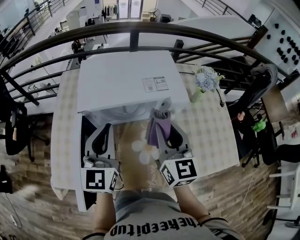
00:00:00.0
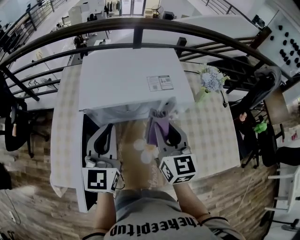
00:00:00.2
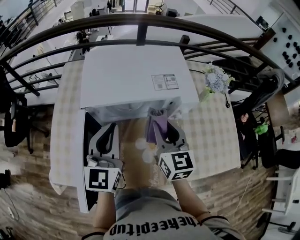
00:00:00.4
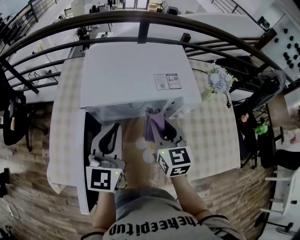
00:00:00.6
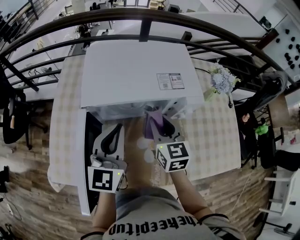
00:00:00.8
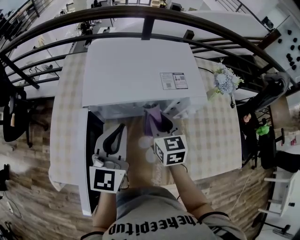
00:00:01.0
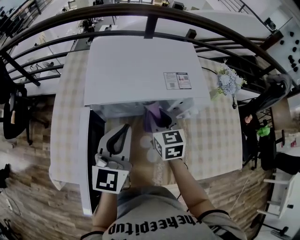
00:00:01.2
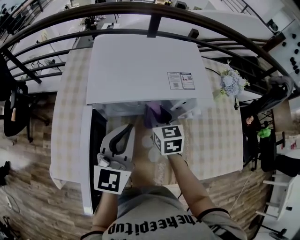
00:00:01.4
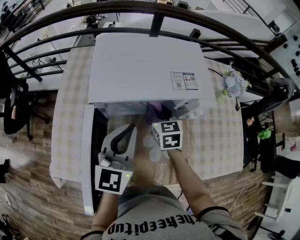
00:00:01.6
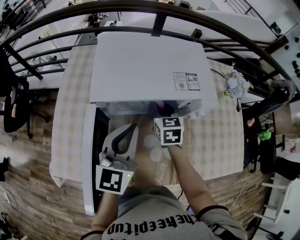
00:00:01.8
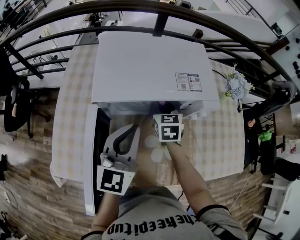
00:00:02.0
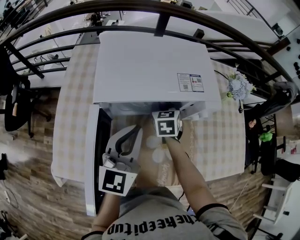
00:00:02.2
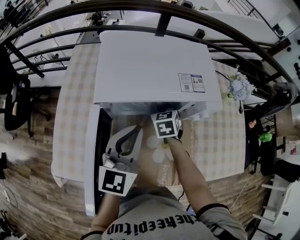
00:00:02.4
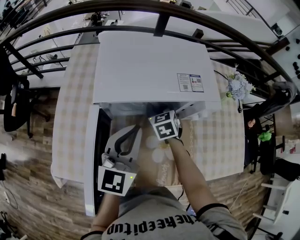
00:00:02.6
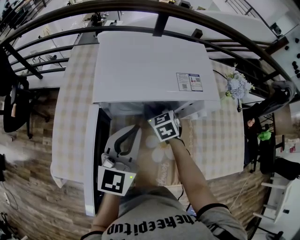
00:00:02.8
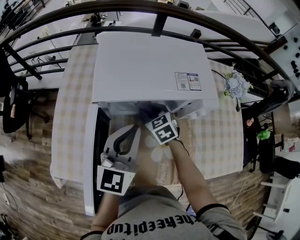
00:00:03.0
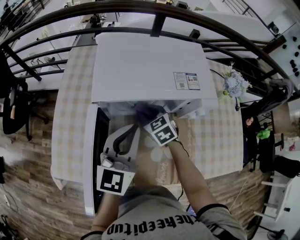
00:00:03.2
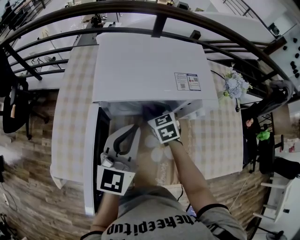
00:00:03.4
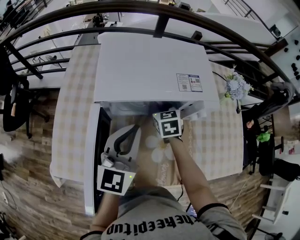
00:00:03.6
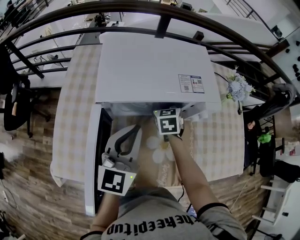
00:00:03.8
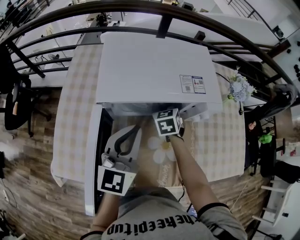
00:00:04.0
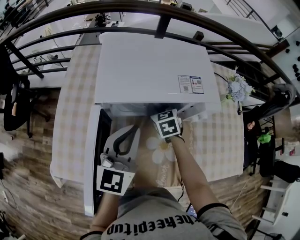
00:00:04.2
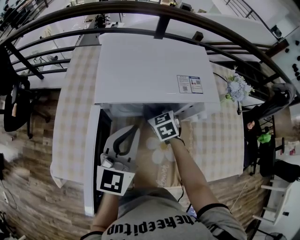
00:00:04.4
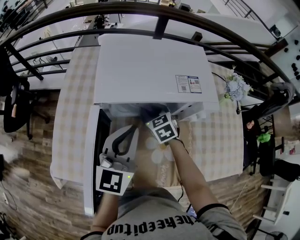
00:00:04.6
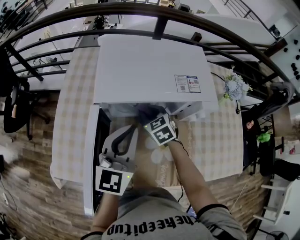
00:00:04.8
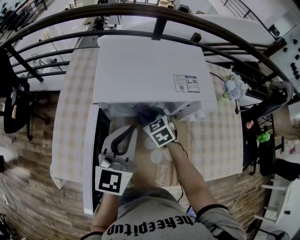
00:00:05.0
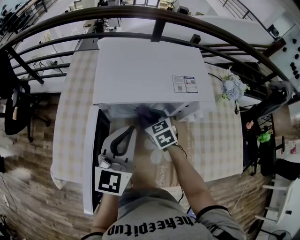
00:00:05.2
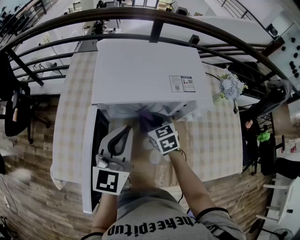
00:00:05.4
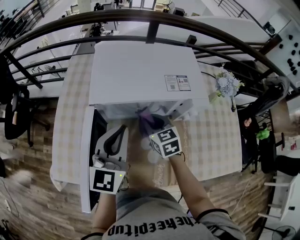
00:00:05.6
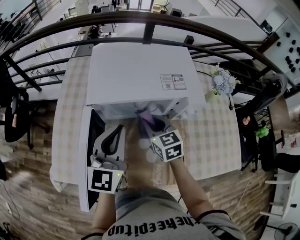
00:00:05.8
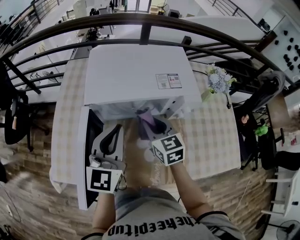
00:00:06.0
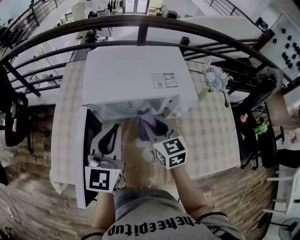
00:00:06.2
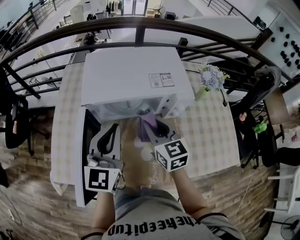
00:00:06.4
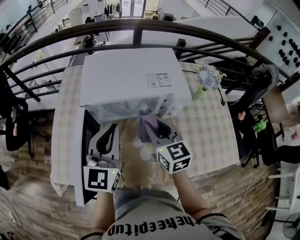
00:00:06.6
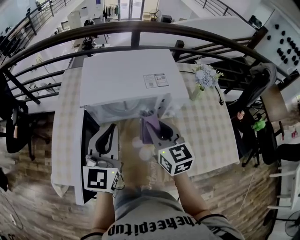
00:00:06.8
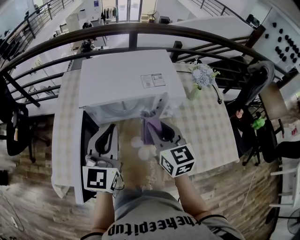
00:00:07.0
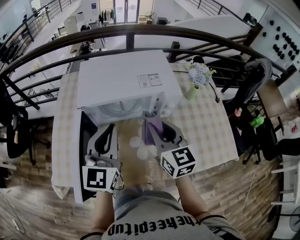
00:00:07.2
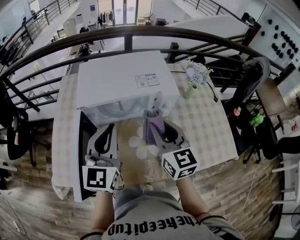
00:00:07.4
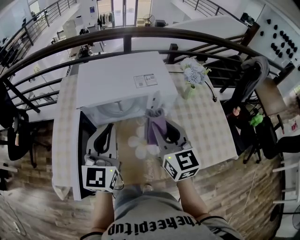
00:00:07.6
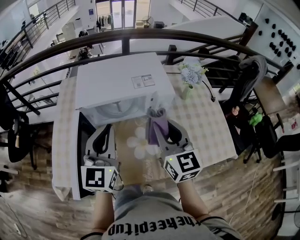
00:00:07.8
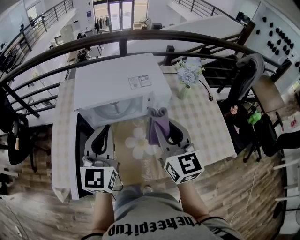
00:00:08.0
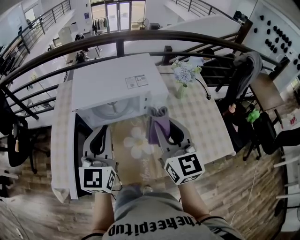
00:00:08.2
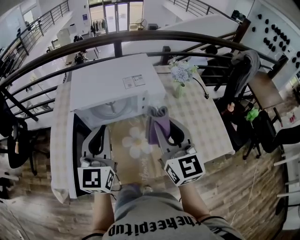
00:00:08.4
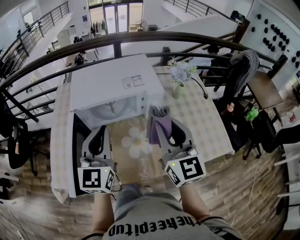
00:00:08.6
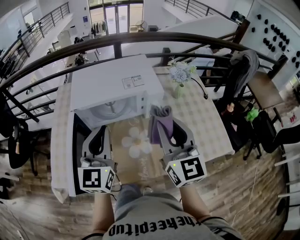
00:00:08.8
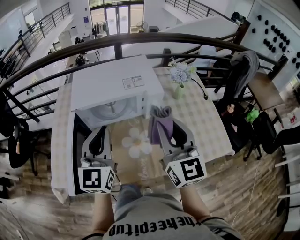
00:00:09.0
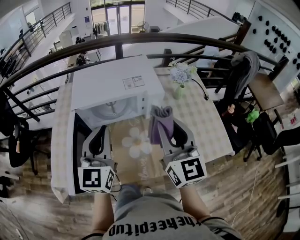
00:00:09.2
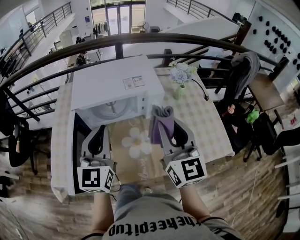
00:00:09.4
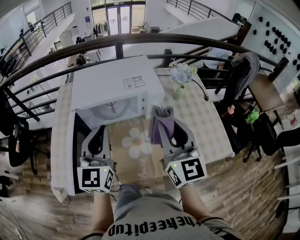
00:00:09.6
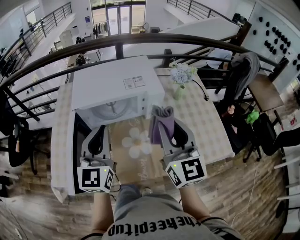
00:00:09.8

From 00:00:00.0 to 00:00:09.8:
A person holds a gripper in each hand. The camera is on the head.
From 00:00:00.0 to 00:00:01.4: The left gripper moves downward, about 5 cm. The right gripper travels downward, forward and to the left by roughly 20 cm, and turns by some 30 degrees.
From 00:00:01.4 to 00:00:02.8: The right gripper is displaced downward by about 5 cm, and changes its angle by about 20 degrees.
From 00:00:02.8 to 00:00:04.2: The grippers move only a little.
From 00:00:04.2 to 00:00:05.6: The right gripper goes about 5 cm backward.
From 00:00:05.6 to 00:00:07.0: The left gripper moves upward, roughly 5 cm, while the right gripper shifts approximately 20 cm upward, backward and to the right, and swivels some 20 degrees.
From 00:00:07.0 to 00:00:08.4: The right gripper moves upward, backward and to the right, about 15 cm. The left gripper ends up about 5 cm from where it was.
From 00:00:08.4 to 00:00:09.8: The grippers make only small movements.

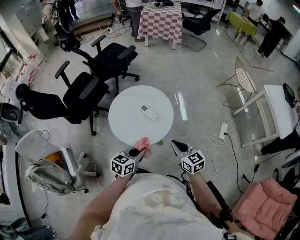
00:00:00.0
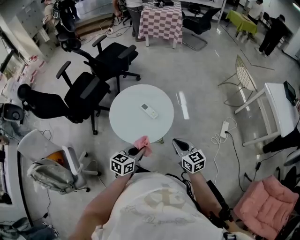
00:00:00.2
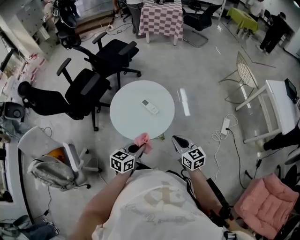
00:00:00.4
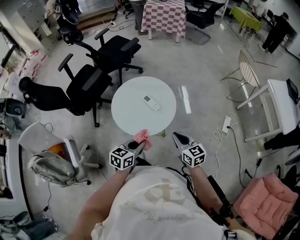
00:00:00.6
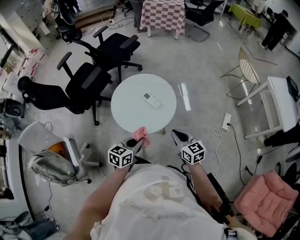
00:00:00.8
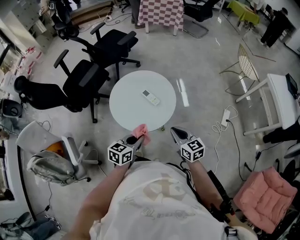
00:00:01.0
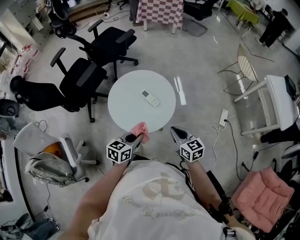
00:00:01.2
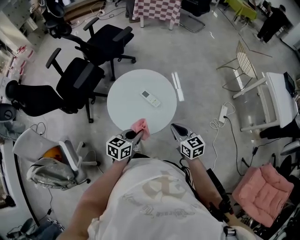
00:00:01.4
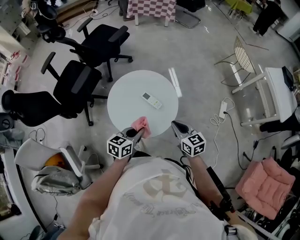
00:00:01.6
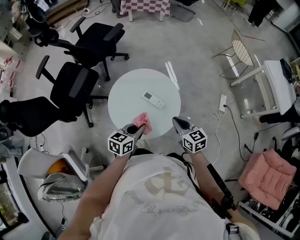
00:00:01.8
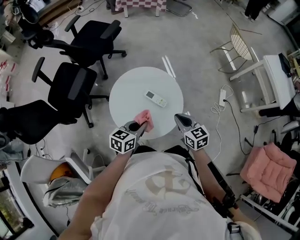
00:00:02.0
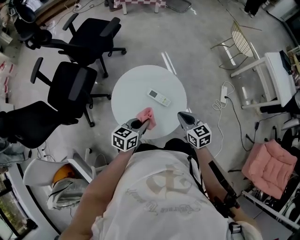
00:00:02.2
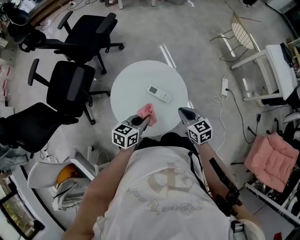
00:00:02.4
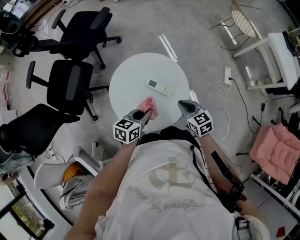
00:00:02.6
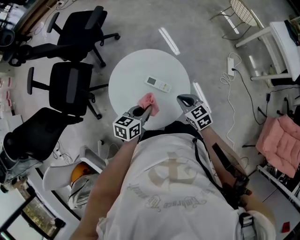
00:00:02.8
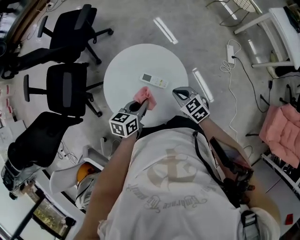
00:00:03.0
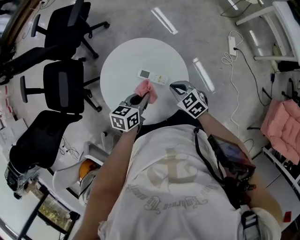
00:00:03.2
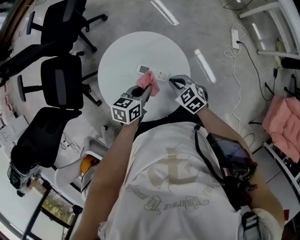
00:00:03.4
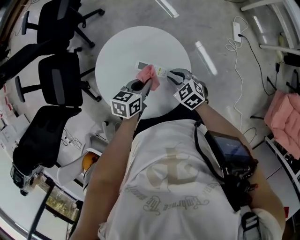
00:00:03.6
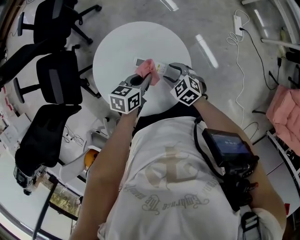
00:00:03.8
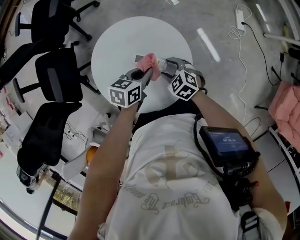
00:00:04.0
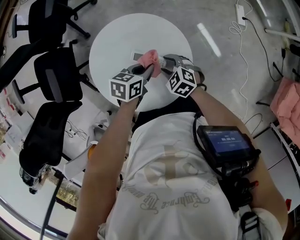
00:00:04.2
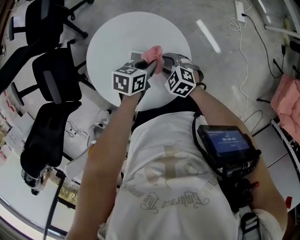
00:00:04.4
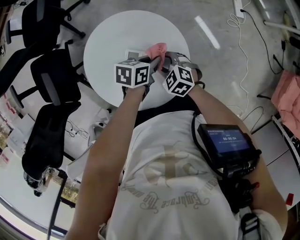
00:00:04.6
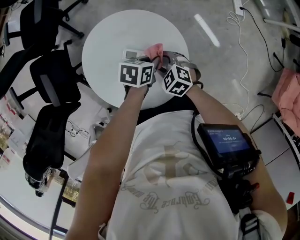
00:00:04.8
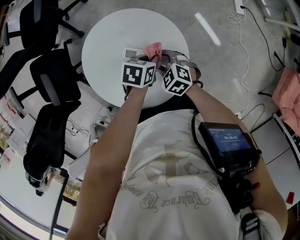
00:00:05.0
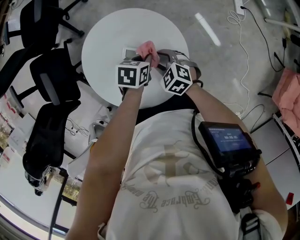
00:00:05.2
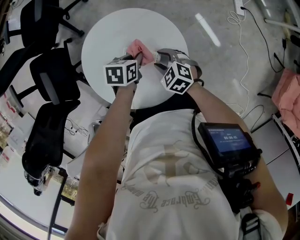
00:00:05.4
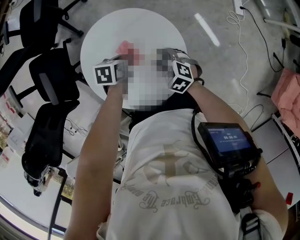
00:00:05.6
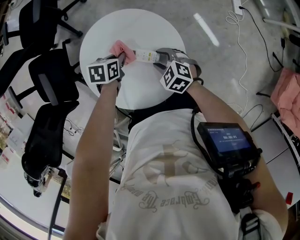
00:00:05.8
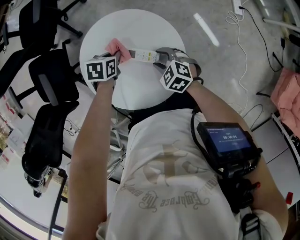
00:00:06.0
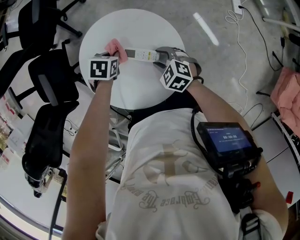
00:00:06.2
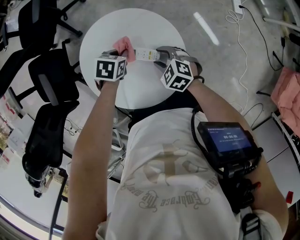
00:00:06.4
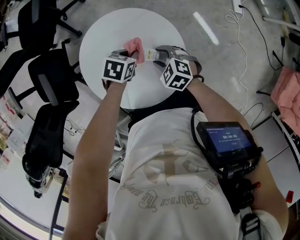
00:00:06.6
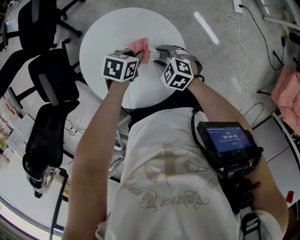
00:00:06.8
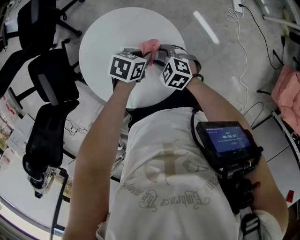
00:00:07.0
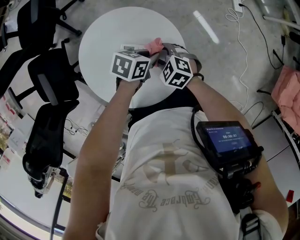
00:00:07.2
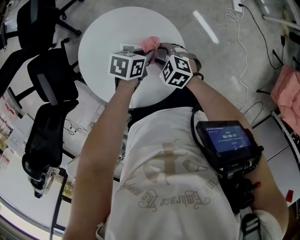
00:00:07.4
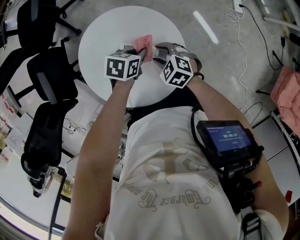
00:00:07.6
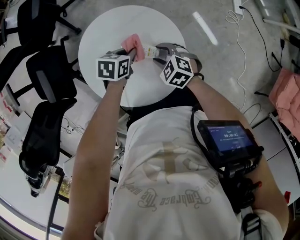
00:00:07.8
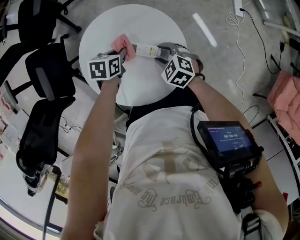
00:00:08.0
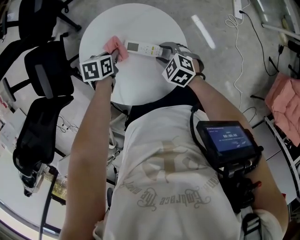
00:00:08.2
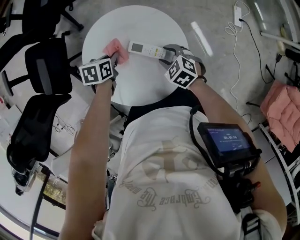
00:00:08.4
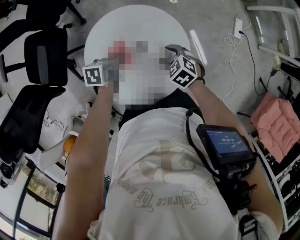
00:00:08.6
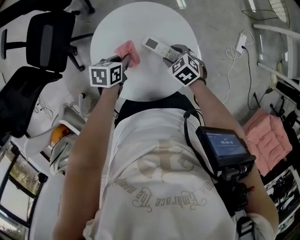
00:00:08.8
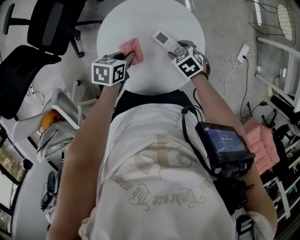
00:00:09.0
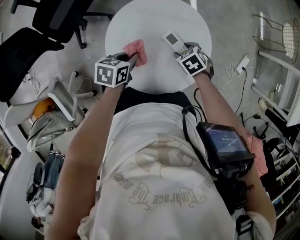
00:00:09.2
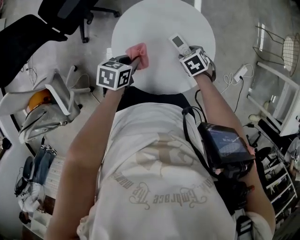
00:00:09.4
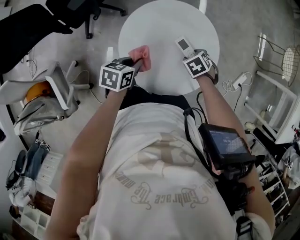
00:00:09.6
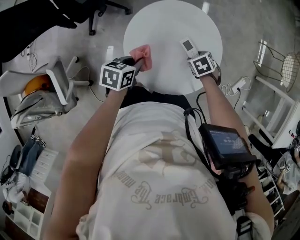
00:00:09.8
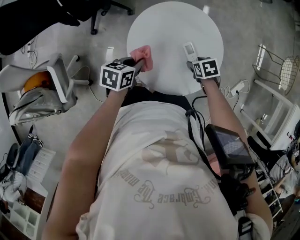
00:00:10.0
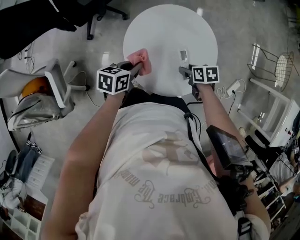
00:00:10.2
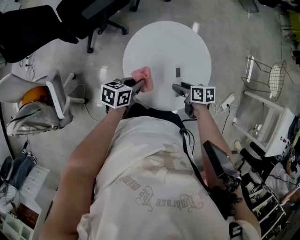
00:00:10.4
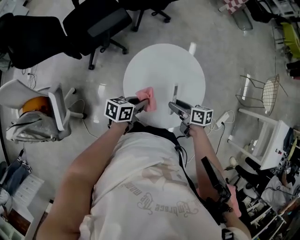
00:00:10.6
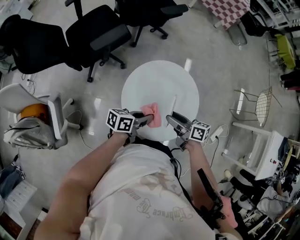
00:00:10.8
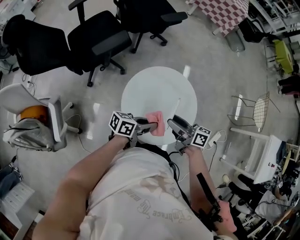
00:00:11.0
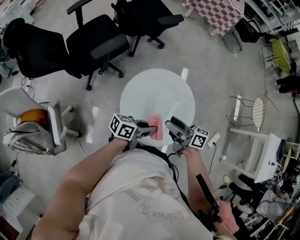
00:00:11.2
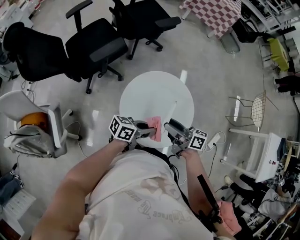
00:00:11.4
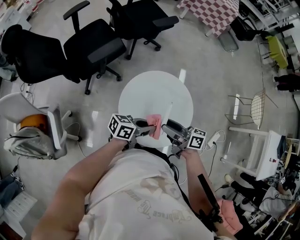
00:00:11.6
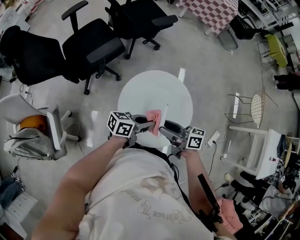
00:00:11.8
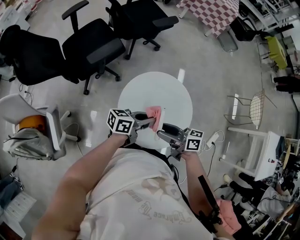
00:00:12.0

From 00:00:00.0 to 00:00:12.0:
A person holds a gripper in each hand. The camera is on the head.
From 00:00:00.0 to 00:00:01.6: Both grippers move forward and to the left, some 10 cm.
From 00:00:01.6 to 00:00:03.0: The right gripper heads downward and forward, covering about 15 cm, and turns by some 20 degrees; the left gripper shifts some 15 cm forward and downward.
From 00:00:03.0 to 00:00:04.4: The left gripper shifts by about 15 cm, and changes its angle by some 20 degrees. The right gripper heads downward, covering some 10 cm, and opens up.
From 00:00:04.4 to 00:00:06.0: The left gripper ends up approximately 15 cm from where it was, and turns by roughly 20 degrees.
From 00:00:07.6 to 00:00:09.0: The left gripper ends up roughly 20 cm from where it was, and changes its angle by some 30 degrees.
From 00:00:09.0 to 00:00:10.4: The right gripper ends up roughly 10 cm from where it was, and rotates approximately 40 degrees. The left gripper changes place by some 10 cm, and turns by about 20 degrees.
From 00:00:10.4 to 00:00:12.0: The two grippers go about 15 cm upward. The left gripper tilts its fingers some 30 degrees upward. Meanwhile the right gripper tips its fingers upward by approximately 40 degrees.

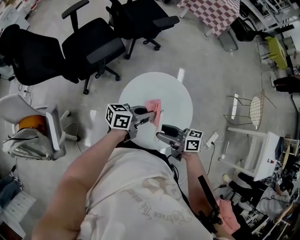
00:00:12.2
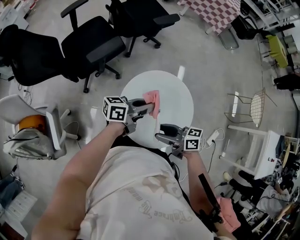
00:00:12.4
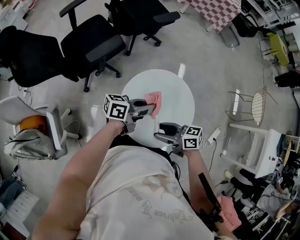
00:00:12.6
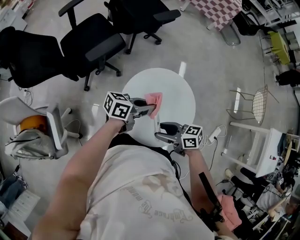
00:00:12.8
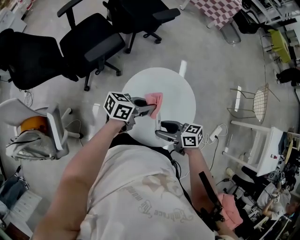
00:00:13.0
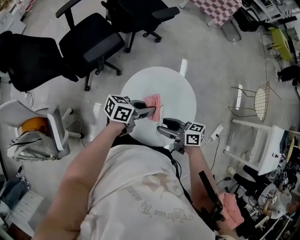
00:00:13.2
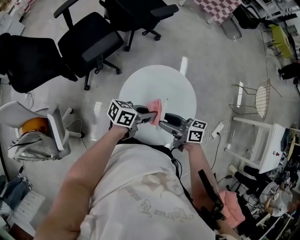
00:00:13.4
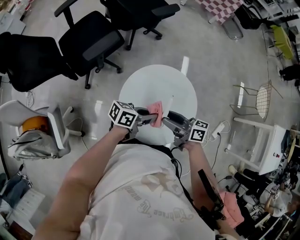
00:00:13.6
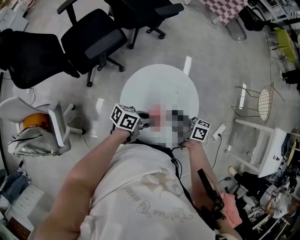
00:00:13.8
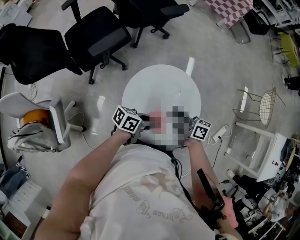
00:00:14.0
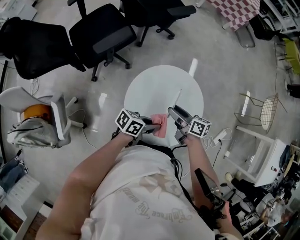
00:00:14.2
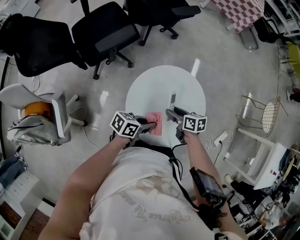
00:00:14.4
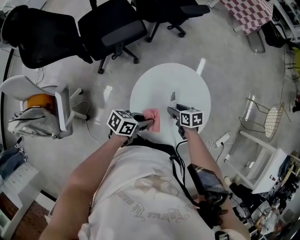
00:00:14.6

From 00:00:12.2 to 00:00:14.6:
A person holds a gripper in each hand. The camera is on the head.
From 00:00:12.2 to 00:00:13.4: There are only small adjustments of the grippers.
From 00:00:13.4 to 00:00:14.6: The left gripper heads downward, covering approximately 5 cm. The right gripper is displaced downward by roughly 15 cm, and tips its fingers downward by about 40 degrees.
